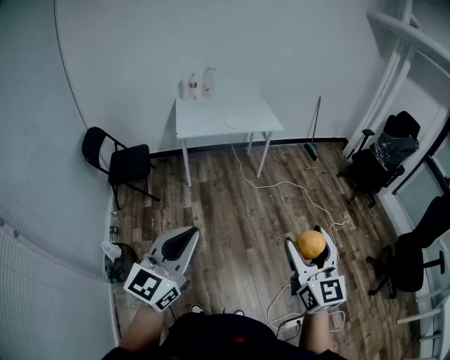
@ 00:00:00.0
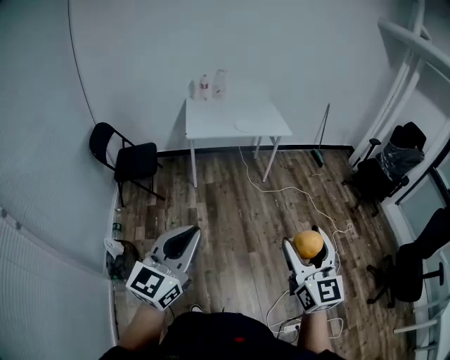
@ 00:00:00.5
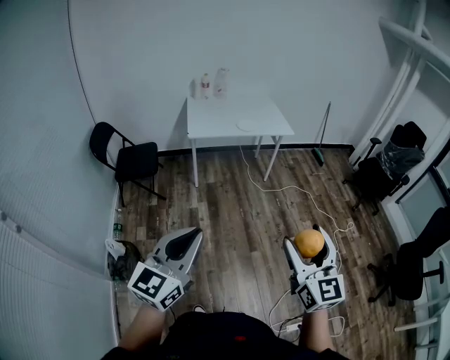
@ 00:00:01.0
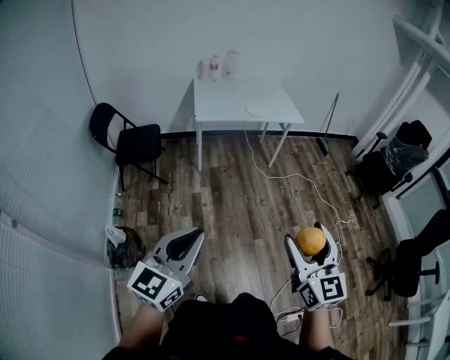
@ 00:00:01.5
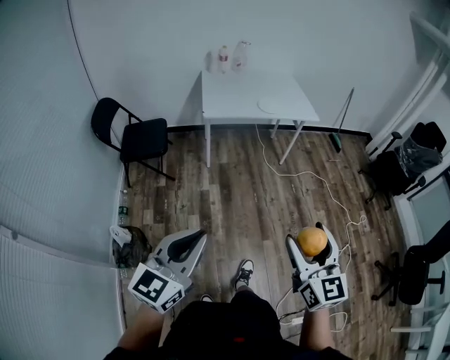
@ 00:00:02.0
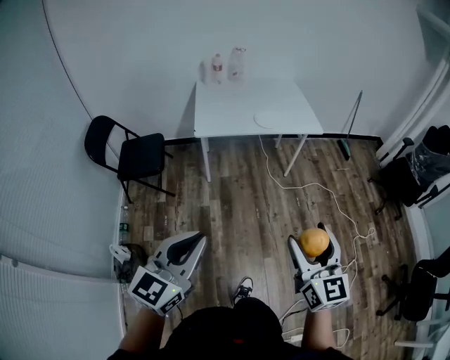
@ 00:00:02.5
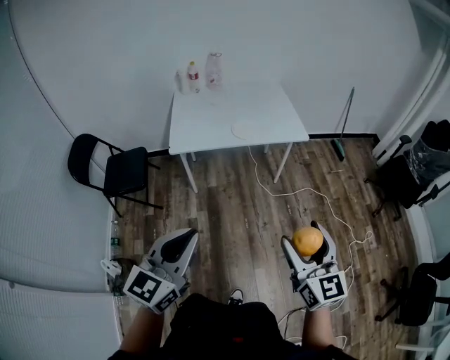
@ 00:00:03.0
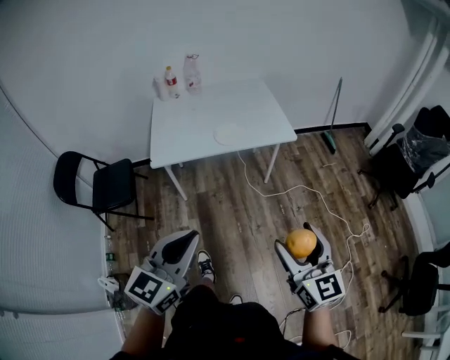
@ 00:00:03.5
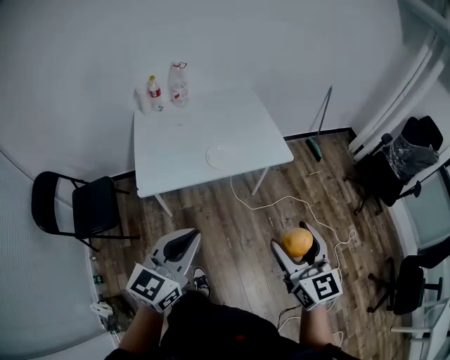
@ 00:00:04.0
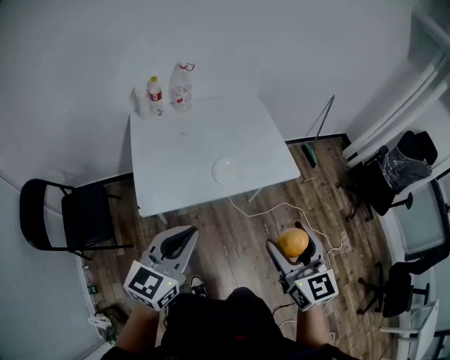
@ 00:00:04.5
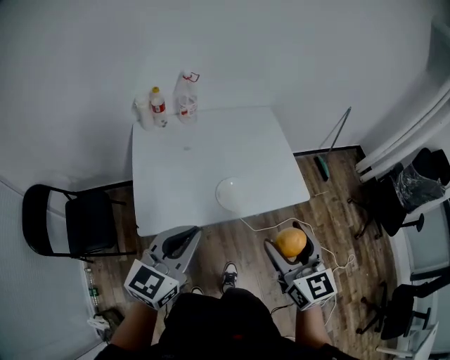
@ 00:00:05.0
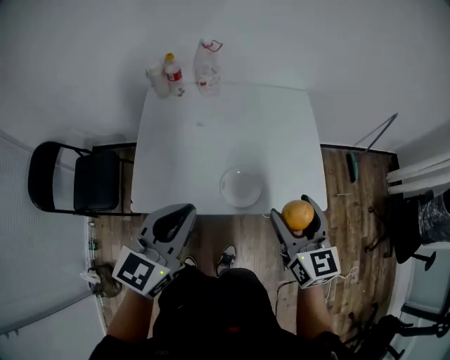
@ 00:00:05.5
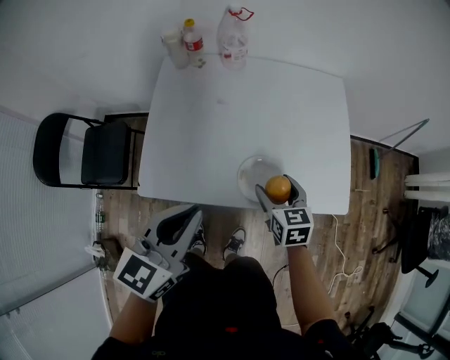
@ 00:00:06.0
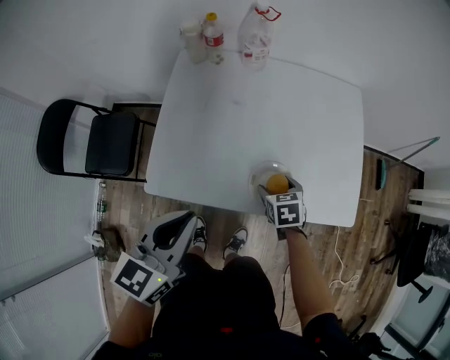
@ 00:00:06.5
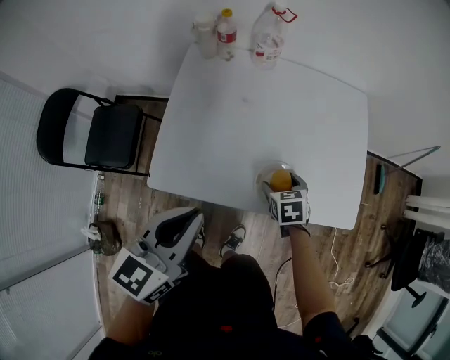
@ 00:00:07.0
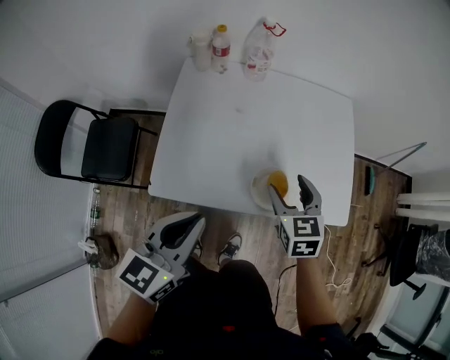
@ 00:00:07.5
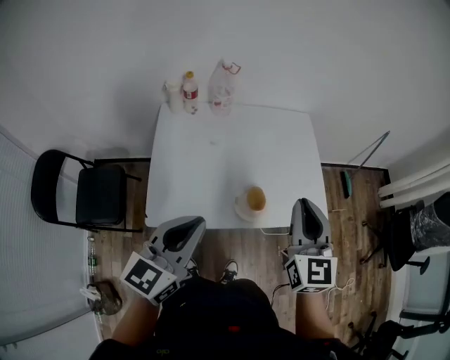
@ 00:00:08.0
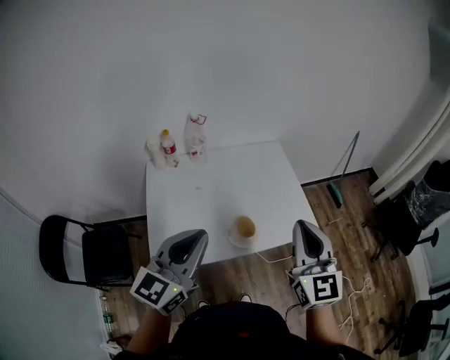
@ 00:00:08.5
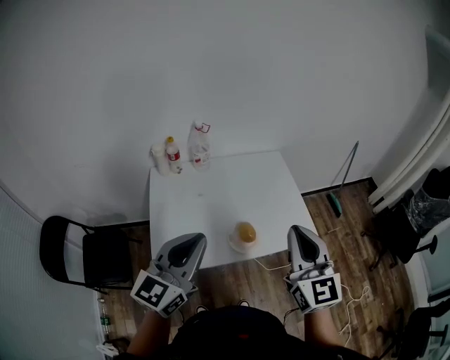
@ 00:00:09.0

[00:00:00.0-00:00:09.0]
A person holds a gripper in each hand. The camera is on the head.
00:00:00.0 to 00:00:02.0: Both grippers move to the left, forward and downward, some 20 cm.
00:00:02.0 to 00:00:04.5: The pair of grippers is taken forward, some 70 cm.
00:00:04.5 to 00:00:07.0: The right gripper moves about 50 cm, and points its fingers roughly 50 degrees further downward; the left gripper changes place by approximately 25 cm, and changes its angle by roughly 30 degrees.
00:00:07.0 to 00:00:09.0: The right gripper shifts about 50 cm upward, angles its fingers upward, by roughly 60 degrees, and closes; the left gripper shifts approximately 20 cm upward, and rotates roughly 30 degrees.

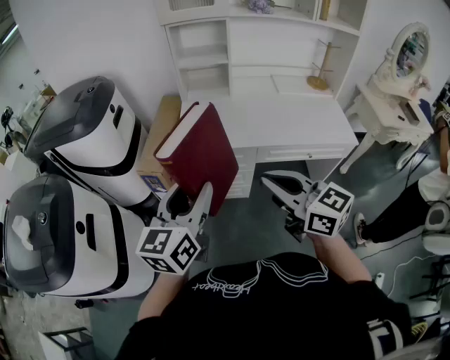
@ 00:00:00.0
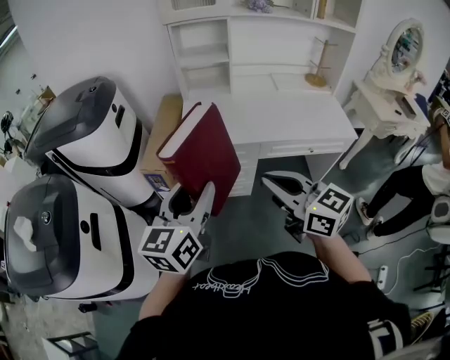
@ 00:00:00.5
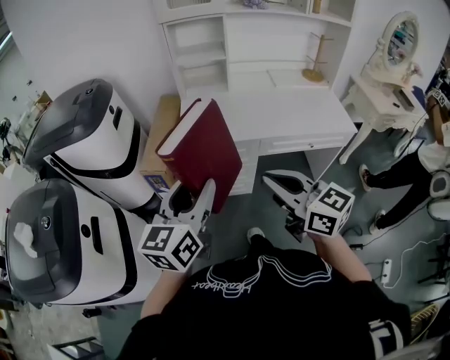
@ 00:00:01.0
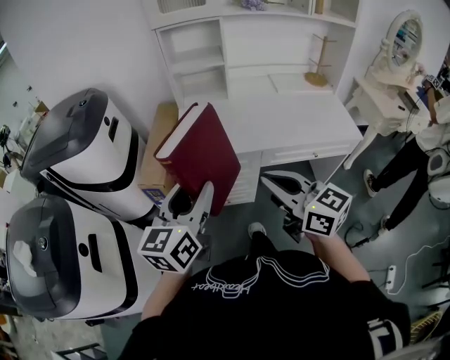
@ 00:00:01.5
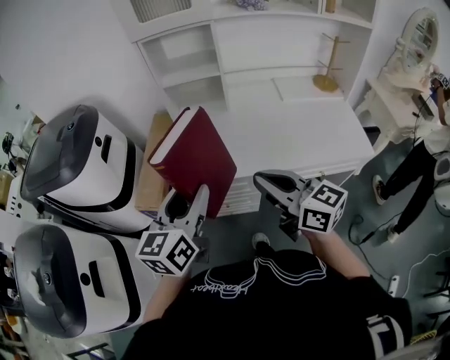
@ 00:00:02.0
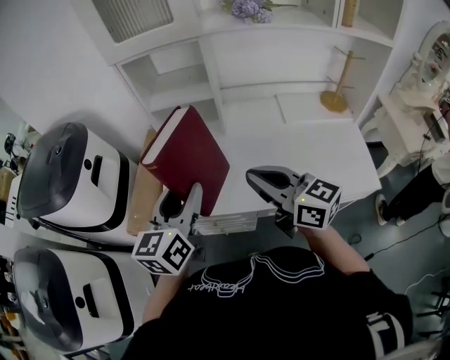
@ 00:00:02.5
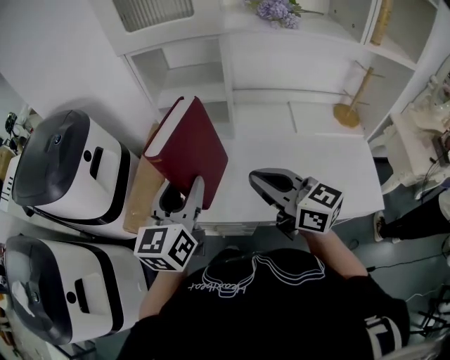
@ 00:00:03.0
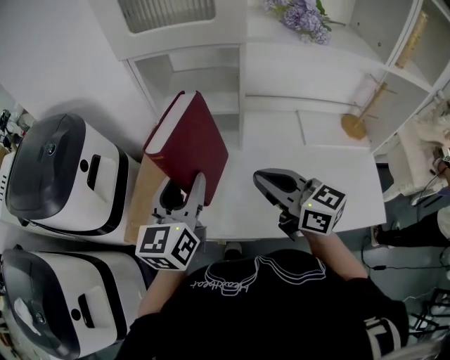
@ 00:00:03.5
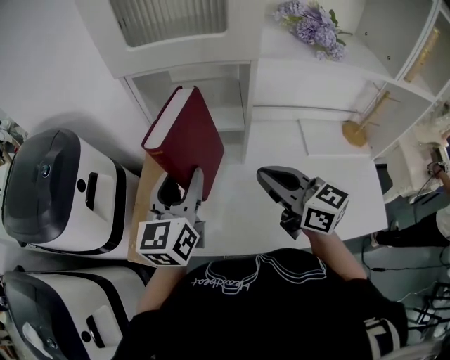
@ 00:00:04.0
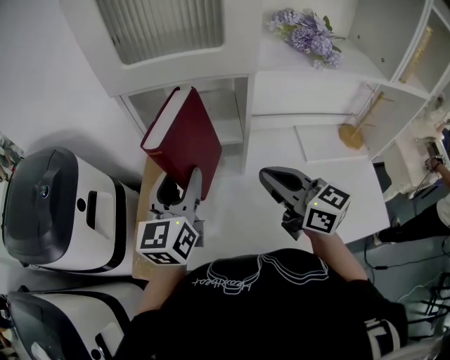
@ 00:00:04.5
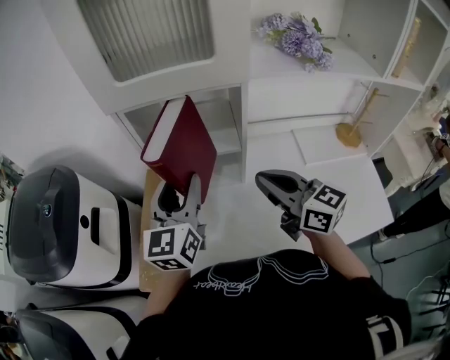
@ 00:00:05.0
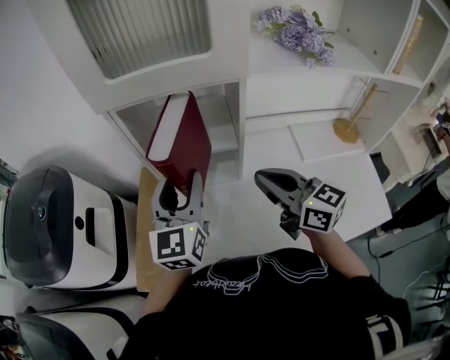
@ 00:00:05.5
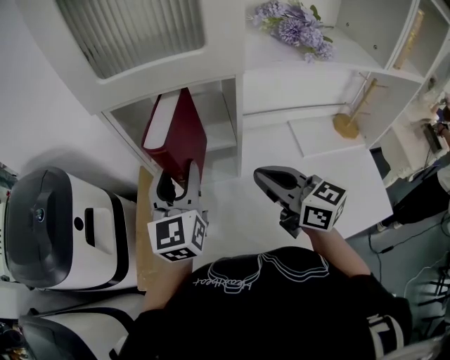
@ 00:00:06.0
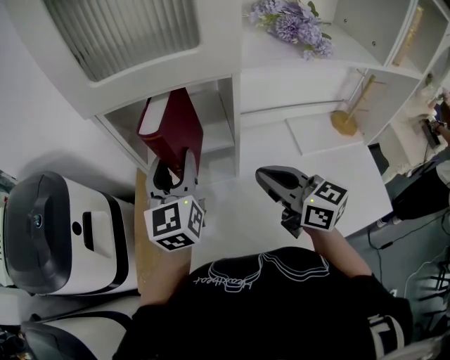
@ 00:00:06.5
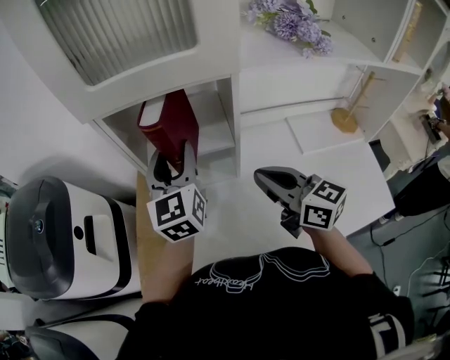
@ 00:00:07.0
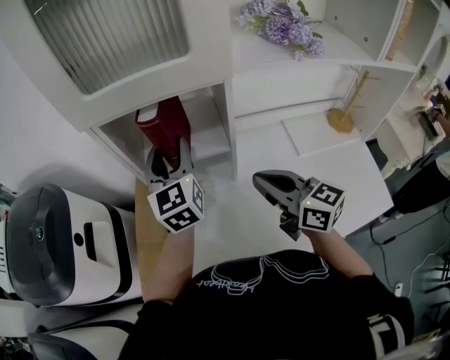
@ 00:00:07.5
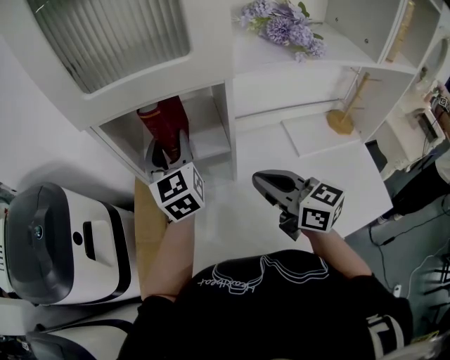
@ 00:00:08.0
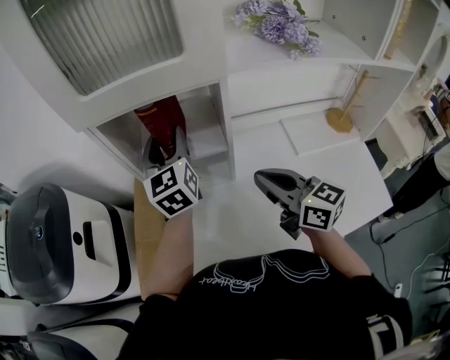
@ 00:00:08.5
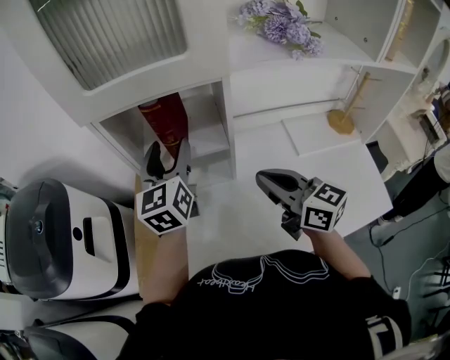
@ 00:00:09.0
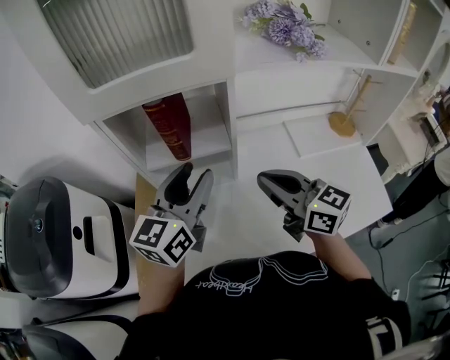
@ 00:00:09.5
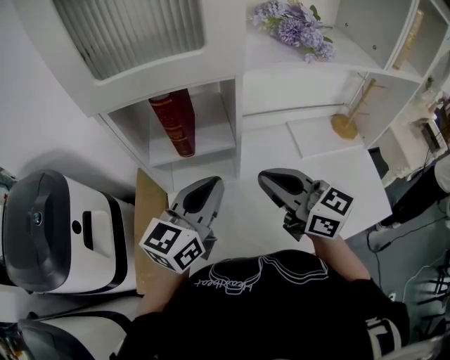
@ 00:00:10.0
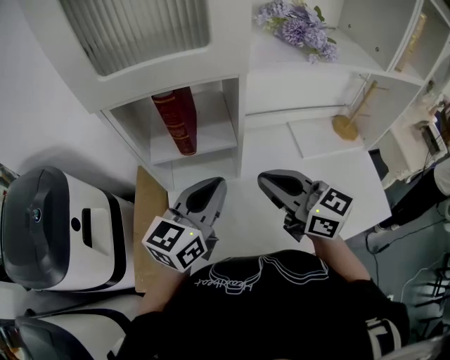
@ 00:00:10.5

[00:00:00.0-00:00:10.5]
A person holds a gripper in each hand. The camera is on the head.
00:00:00.0 to 00:00:02.0: The grippers both shift forward by about 15 cm.
00:00:02.0 to 00:00:04.0: Both grippers travel together forward, some 35 cm.
00:00:04.0 to 00:00:06.5: The right gripper ends up roughly 5 cm from where it was. The left gripper is displaced forward by about 10 cm.
00:00:06.5 to 00:00:08.5: The left gripper is displaced forward by roughly 10 cm.
00:00:08.5 to 00:00:10.5: The left gripper shifts roughly 15 cm backward, turns by approximately 40 degrees, and closes.

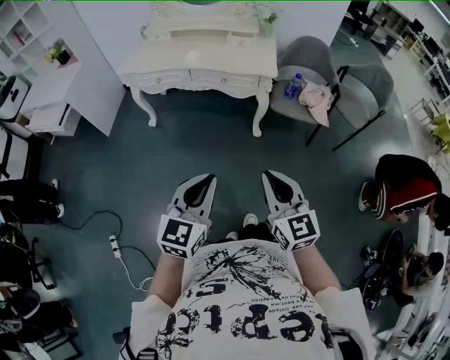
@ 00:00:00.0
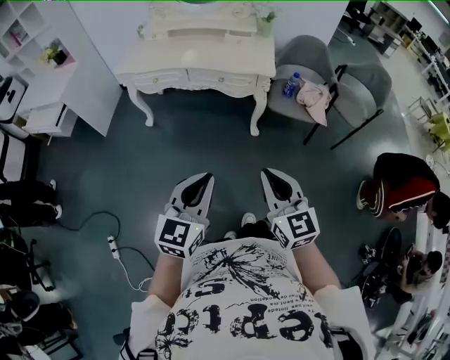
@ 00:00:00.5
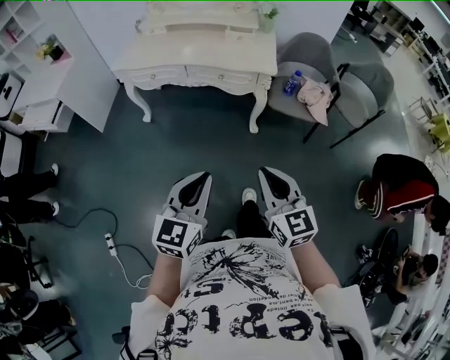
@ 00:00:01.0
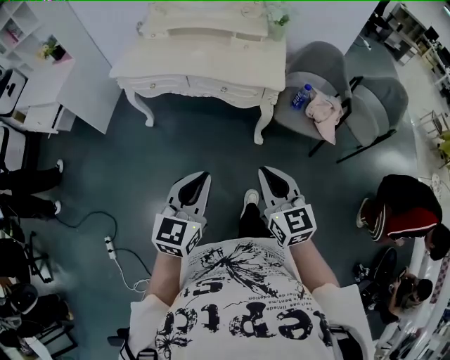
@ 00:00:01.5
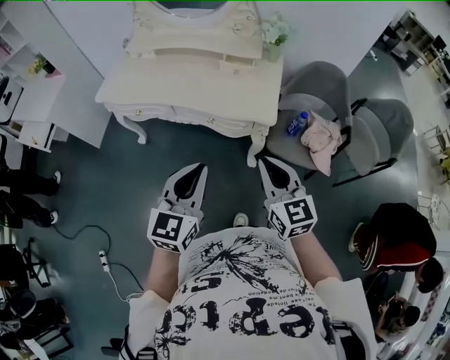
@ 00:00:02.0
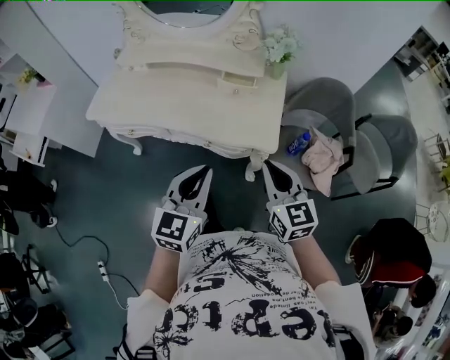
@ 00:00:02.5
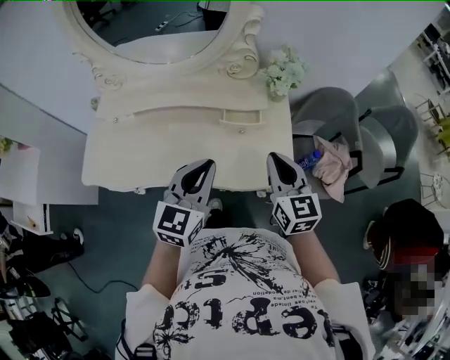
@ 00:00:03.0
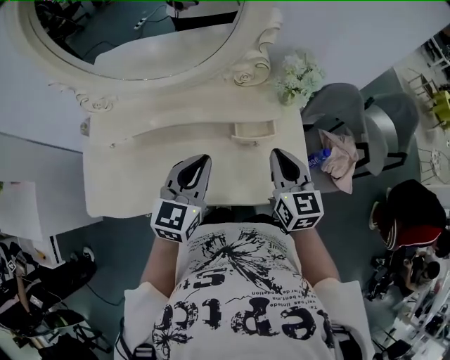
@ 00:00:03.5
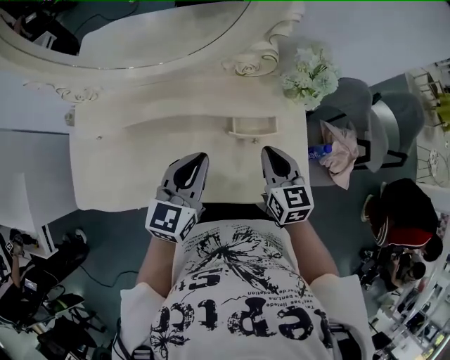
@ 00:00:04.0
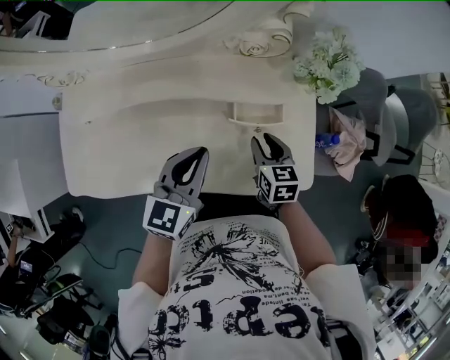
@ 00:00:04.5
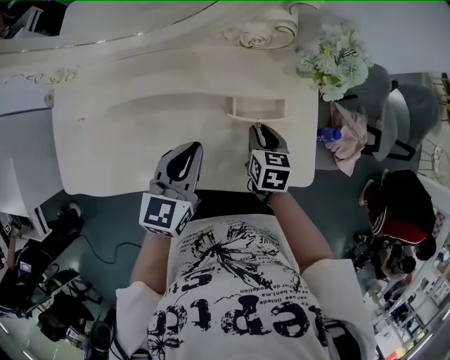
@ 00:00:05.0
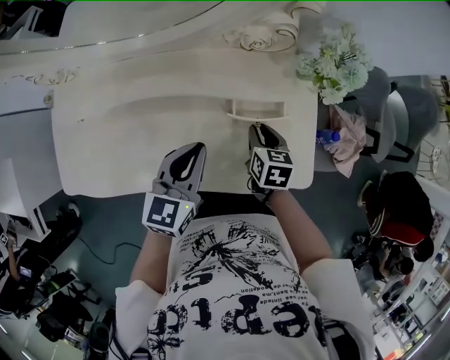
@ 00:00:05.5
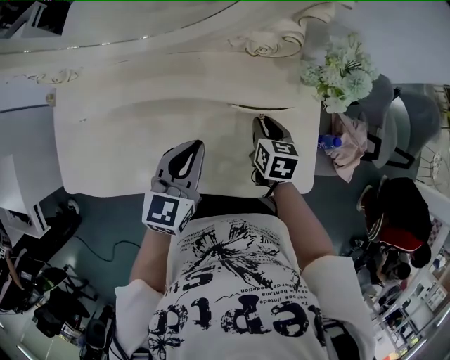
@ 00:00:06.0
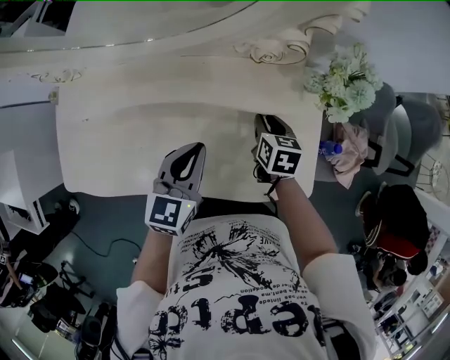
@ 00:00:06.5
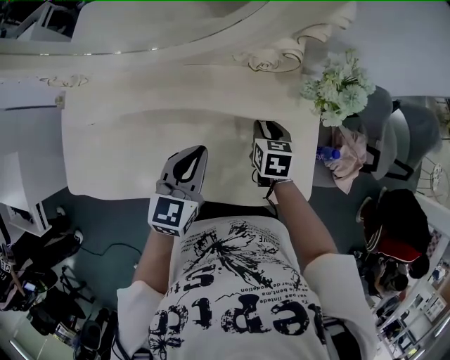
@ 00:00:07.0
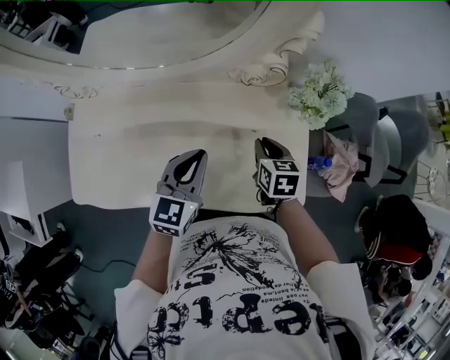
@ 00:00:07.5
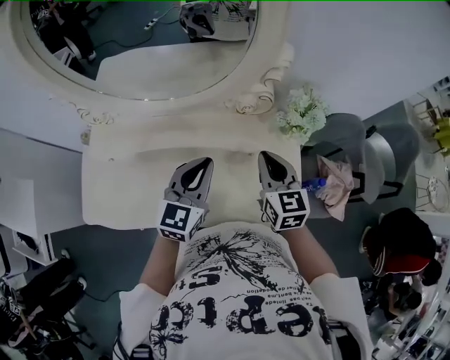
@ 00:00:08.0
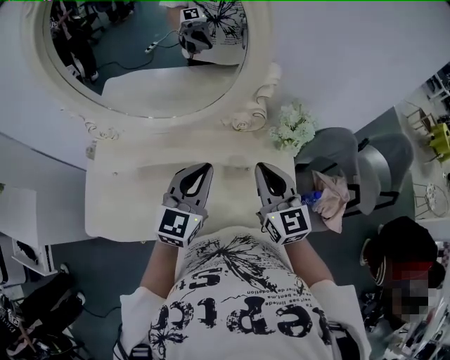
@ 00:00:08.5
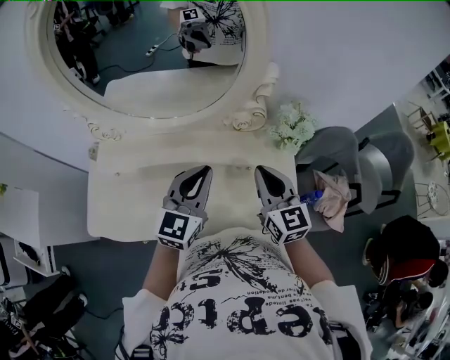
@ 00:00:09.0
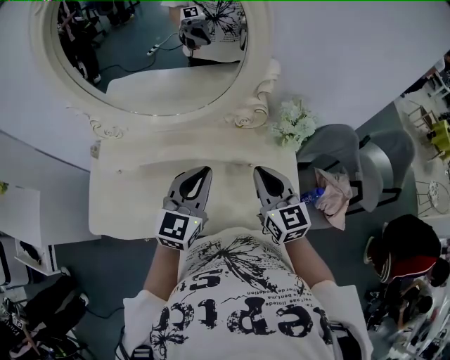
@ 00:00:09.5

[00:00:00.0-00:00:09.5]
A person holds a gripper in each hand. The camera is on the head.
00:00:00.0 to 00:00:02.0: Both grippers travel together forward, some 35 cm.
00:00:02.0 to 00:00:04.0: The two grippers travel together, forward, some 50 cm. The right gripper swivels roughly 30 degrees. The left gripper swivels approximately 20 degrees.
00:00:04.0 to 00:00:05.5: The right gripper shifts some 15 cm downward, swivels roughly 30 degrees, and opens its fingers. The left gripper is displaced downward by approximately 5 cm.
00:00:05.5 to 00:00:07.5: The right gripper heads upward, covering roughly 5 cm.
00:00:07.5 to 00:00:09.5: The left gripper is displaced upward by approximately 15 cm. The right gripper moves upward, roughly 20 cm, and tilts its fingers roughly 40 degrees upward.
